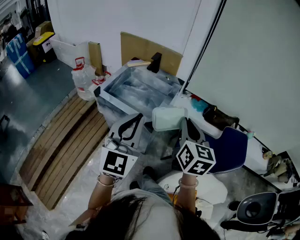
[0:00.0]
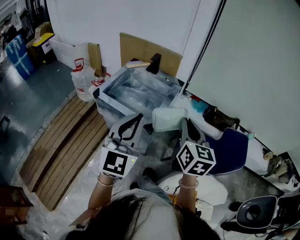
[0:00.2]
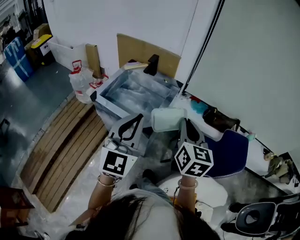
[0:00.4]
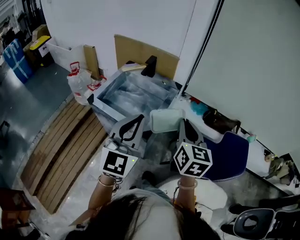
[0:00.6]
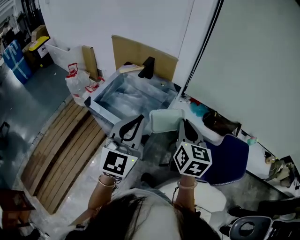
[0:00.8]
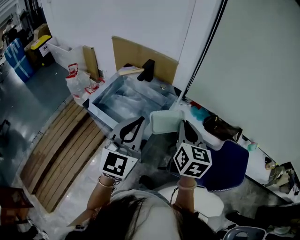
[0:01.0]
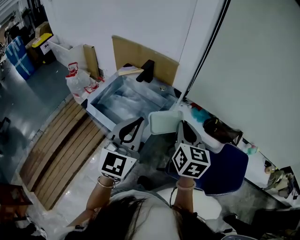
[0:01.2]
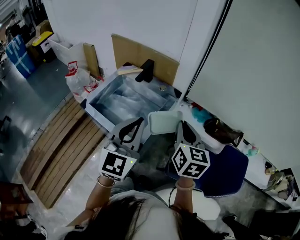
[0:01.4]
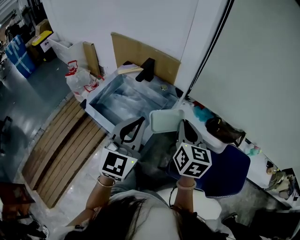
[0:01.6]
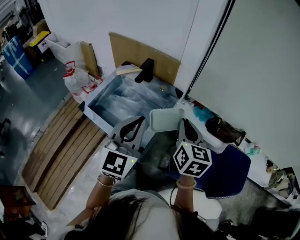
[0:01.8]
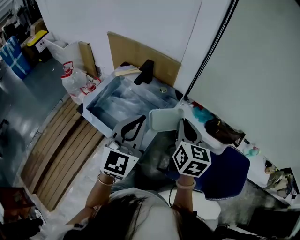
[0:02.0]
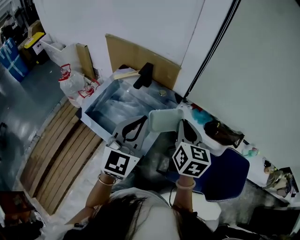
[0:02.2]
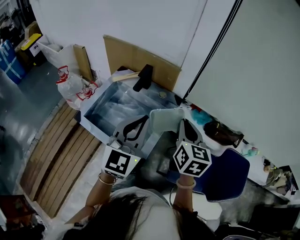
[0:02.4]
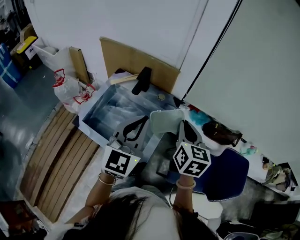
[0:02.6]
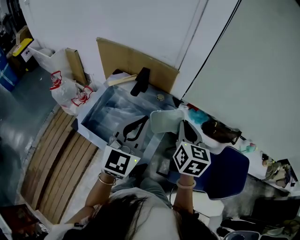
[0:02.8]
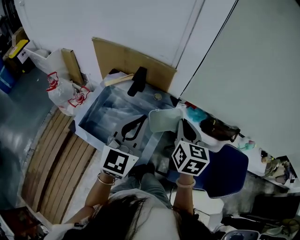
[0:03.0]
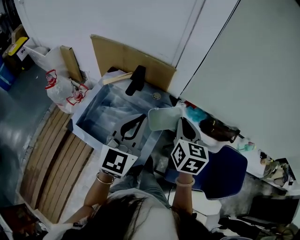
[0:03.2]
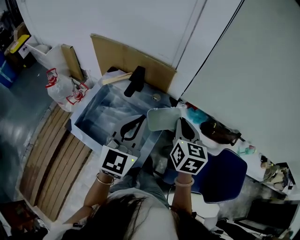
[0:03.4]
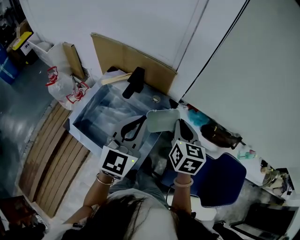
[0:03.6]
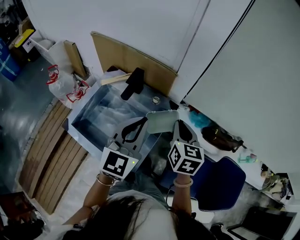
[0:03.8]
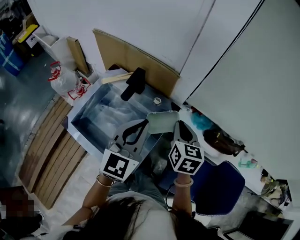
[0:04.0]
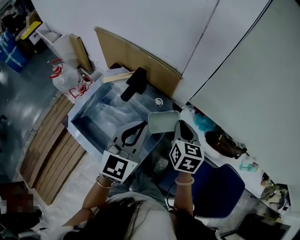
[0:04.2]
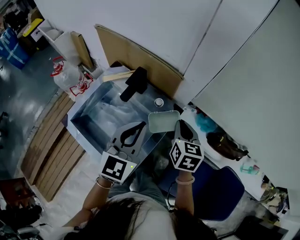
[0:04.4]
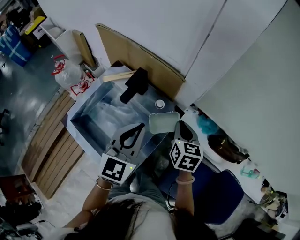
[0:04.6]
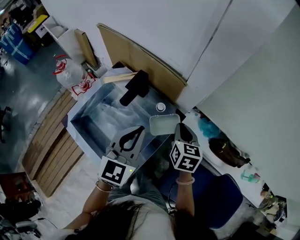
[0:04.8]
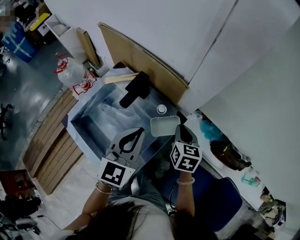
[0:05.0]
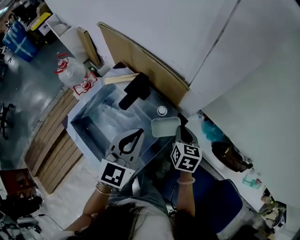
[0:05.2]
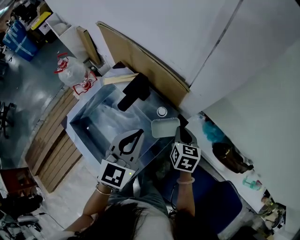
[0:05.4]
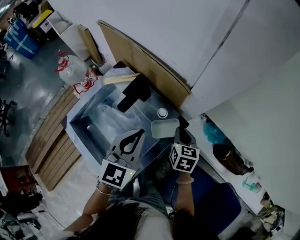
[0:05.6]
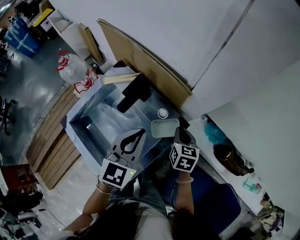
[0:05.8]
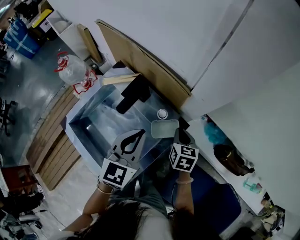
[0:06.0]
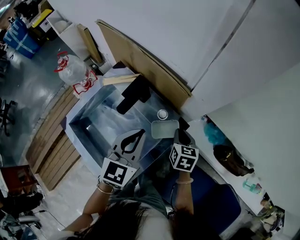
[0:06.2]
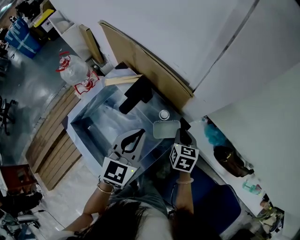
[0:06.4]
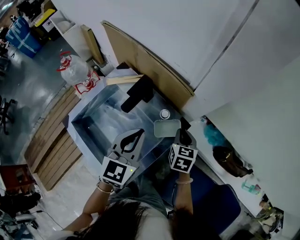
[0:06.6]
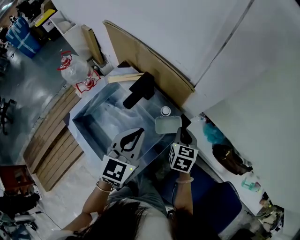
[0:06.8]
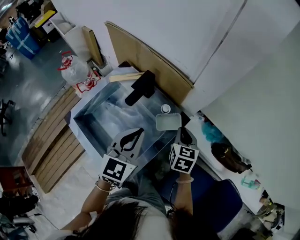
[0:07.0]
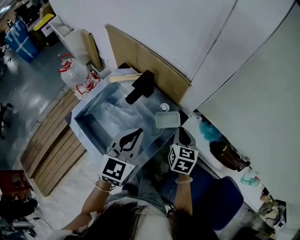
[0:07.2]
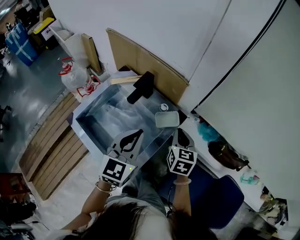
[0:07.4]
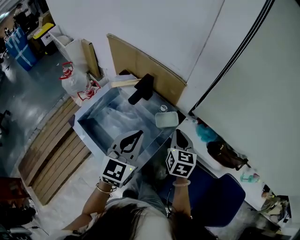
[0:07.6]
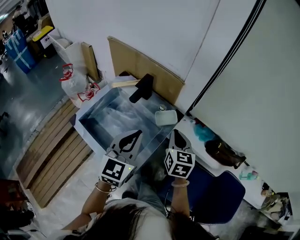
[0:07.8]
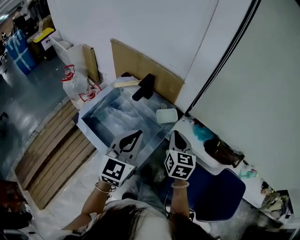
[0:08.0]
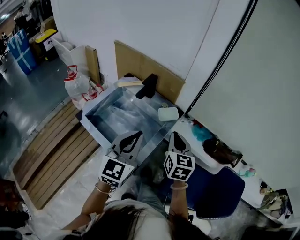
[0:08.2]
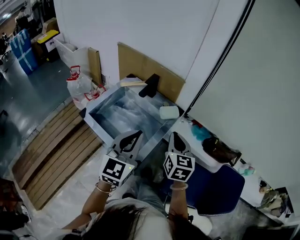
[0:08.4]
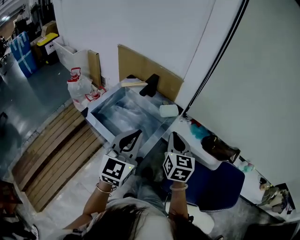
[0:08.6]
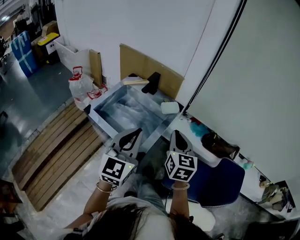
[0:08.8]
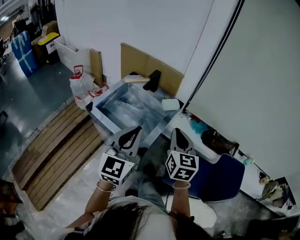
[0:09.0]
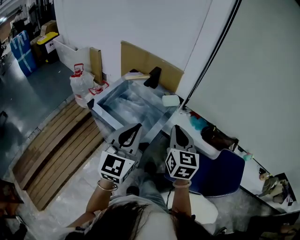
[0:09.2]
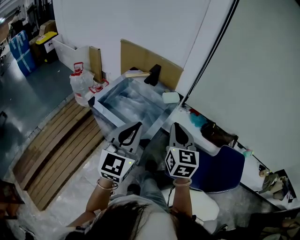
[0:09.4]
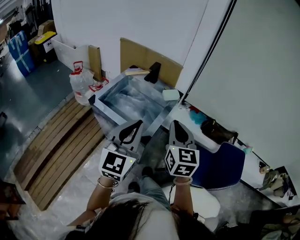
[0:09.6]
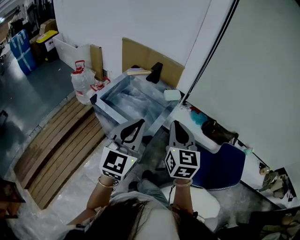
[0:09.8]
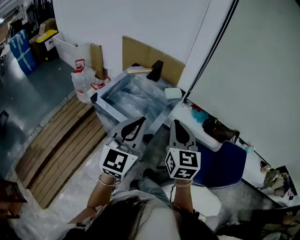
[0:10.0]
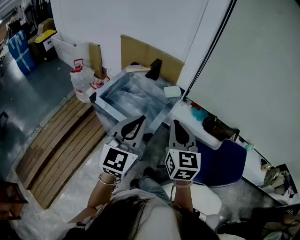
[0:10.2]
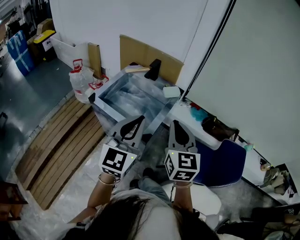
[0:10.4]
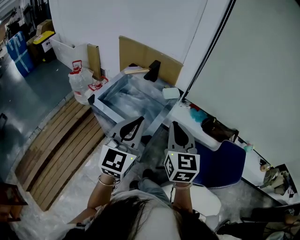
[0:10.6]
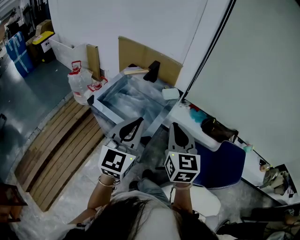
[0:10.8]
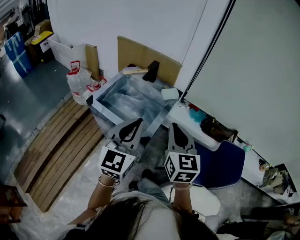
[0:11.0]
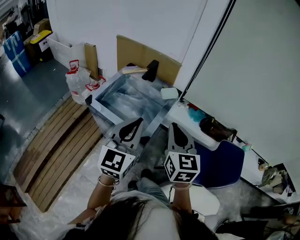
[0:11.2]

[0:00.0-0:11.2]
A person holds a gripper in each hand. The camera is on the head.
0:00.0 to 0:01.6: Both grippers travel together forward, about 20 cm.
0:01.6 to 0:03.2: Both grippers move forward, approximately 10 cm.
0:03.2 to 0:04.8: The right gripper heads forward and downward, covering roughly 20 cm. Meanwhile the left gripper shifts roughly 15 cm forward and downward.
0:04.8 to 0:06.4: The right gripper is displaced downward by approximately 10 cm, while the left gripper shifts by about 5 cm.
0:06.4 to 0:08.0: Both grippers move backward and upward, roughly 20 cm.
0:08.0 to 0:09.6: The right gripper moves backward and upward, some 25 cm; the left gripper moves backward, some 20 cm.
0:09.6 to 0:11.2: The grippers make only small movements.

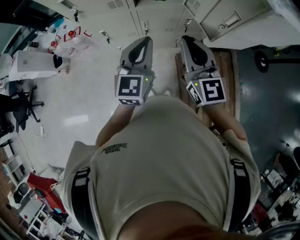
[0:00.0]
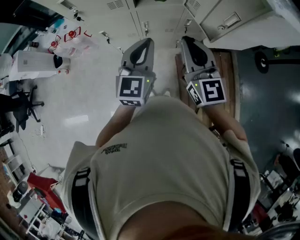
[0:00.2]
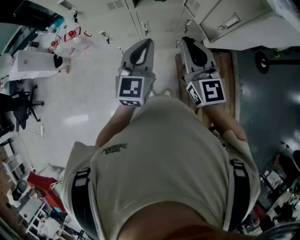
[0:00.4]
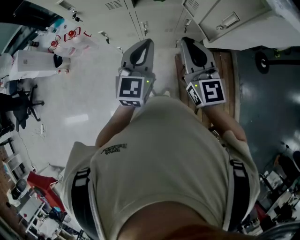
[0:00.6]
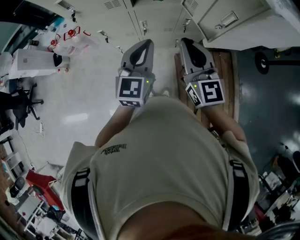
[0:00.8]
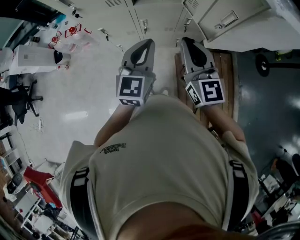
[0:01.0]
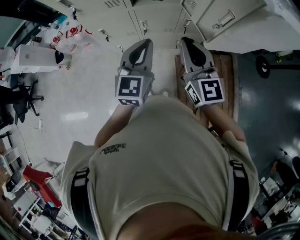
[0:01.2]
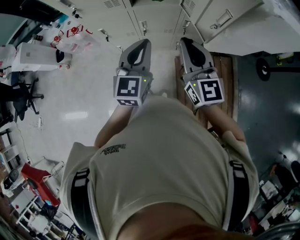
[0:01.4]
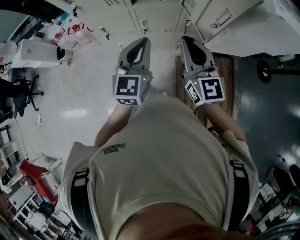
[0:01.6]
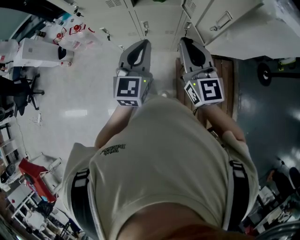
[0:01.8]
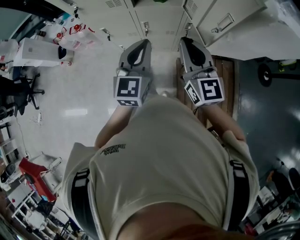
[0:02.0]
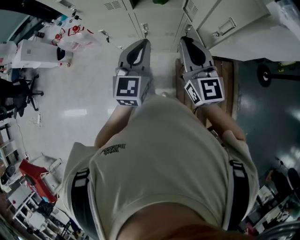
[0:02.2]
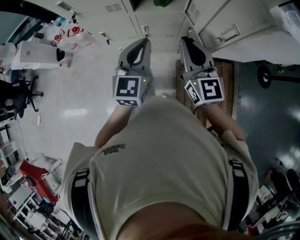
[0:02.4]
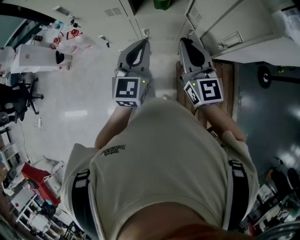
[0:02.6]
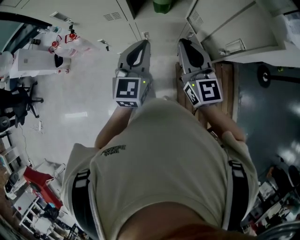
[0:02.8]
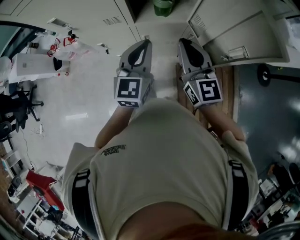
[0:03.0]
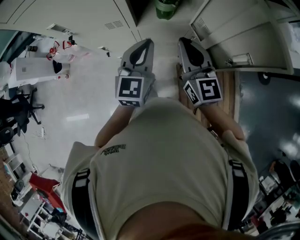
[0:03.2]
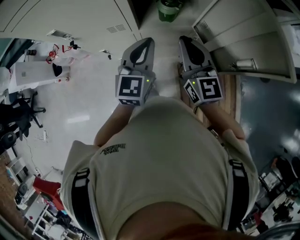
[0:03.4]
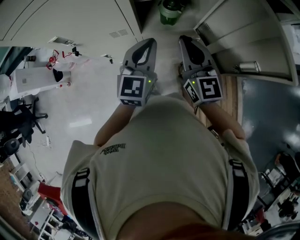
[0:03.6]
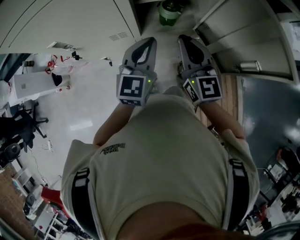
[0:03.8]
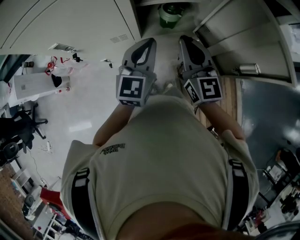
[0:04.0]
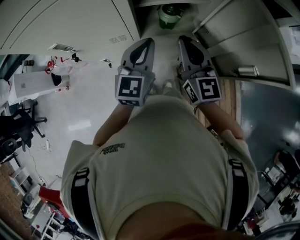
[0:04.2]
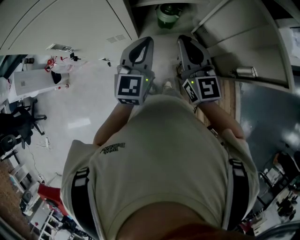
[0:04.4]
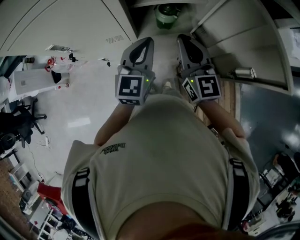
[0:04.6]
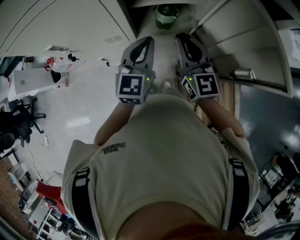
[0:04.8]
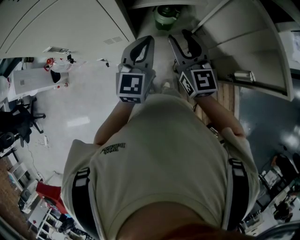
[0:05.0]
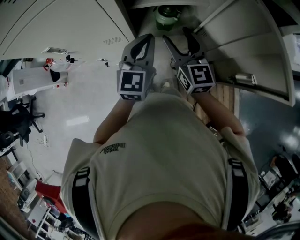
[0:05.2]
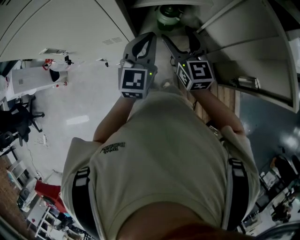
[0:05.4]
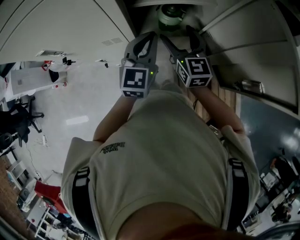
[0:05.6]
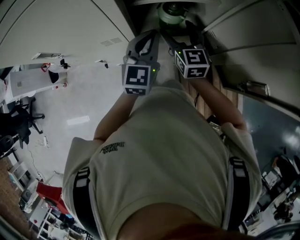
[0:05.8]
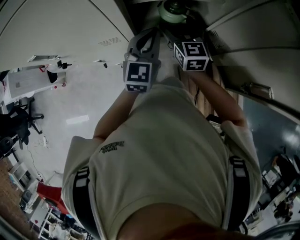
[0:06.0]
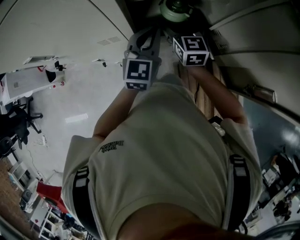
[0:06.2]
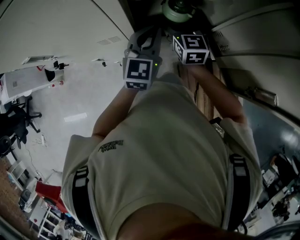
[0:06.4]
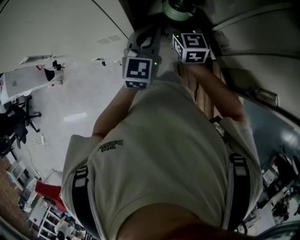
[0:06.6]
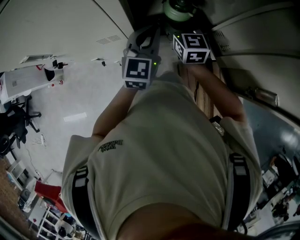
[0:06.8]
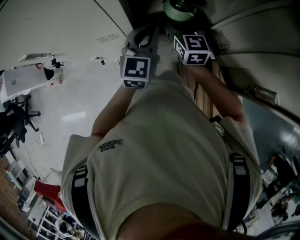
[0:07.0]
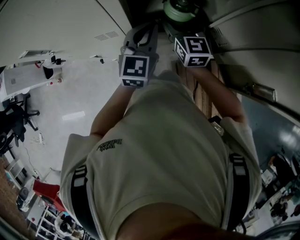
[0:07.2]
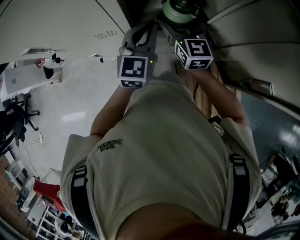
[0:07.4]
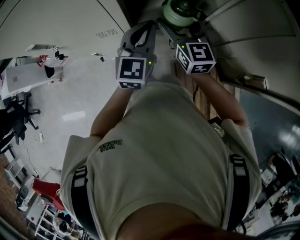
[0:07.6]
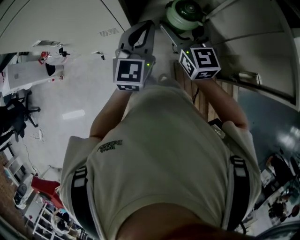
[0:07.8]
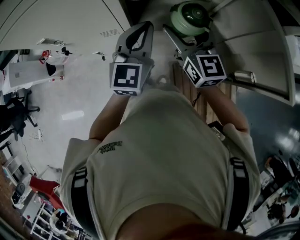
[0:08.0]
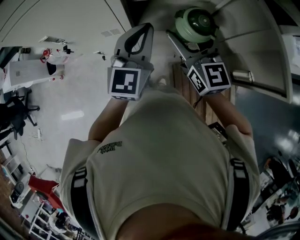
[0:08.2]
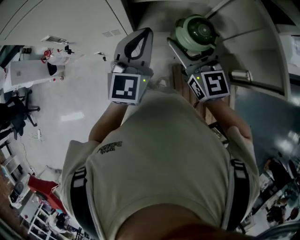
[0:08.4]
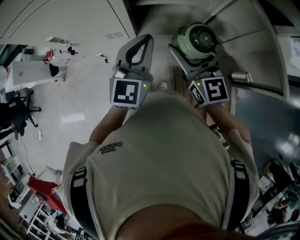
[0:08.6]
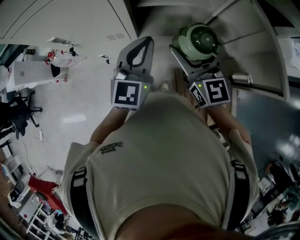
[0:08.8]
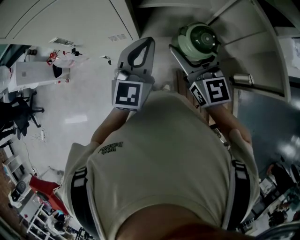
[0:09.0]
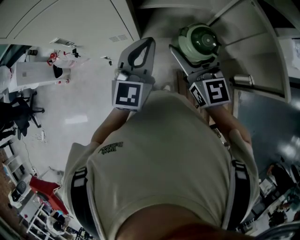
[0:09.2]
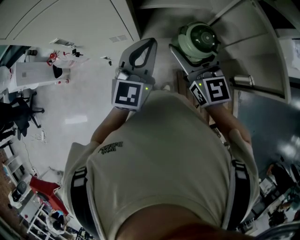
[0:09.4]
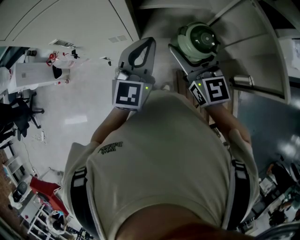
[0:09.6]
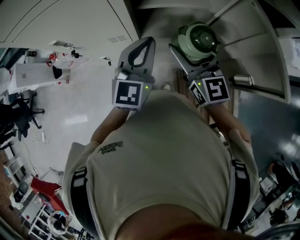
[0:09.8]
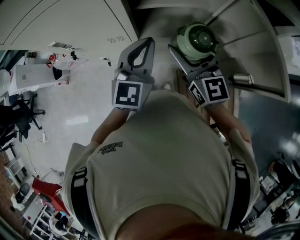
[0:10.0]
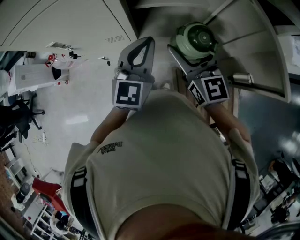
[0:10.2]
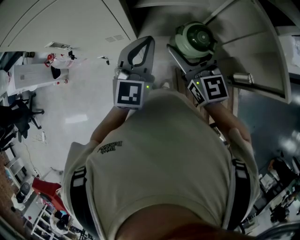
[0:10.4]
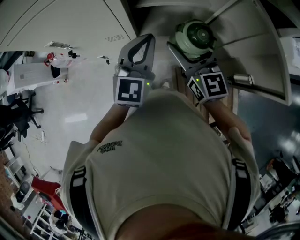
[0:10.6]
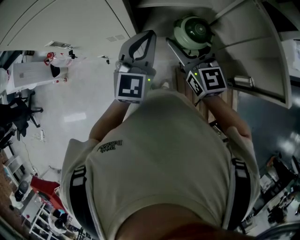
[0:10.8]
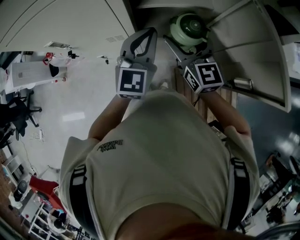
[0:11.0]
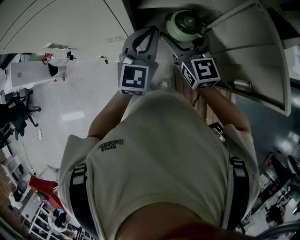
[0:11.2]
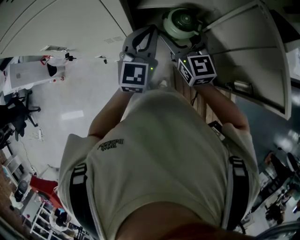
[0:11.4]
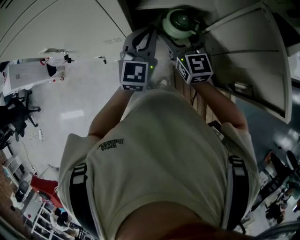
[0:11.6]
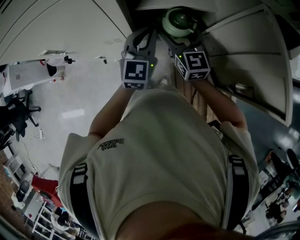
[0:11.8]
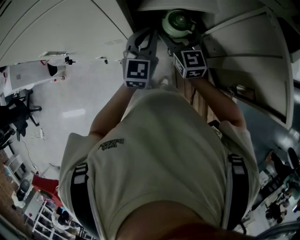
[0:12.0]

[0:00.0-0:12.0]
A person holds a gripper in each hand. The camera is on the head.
0:00.0 to 0:01.6: The right gripper is displaced to the right by roughly 5 cm.
0:01.6 to 0:03.0: Both grippers travel together forward, approximately 15 cm.
0:03.0 to 0:04.4: Both grippers travel together forward, some 10 cm.
0:04.4 to 0:06.0: The left gripper is displaced downward and forward by some 10 cm; the right gripper goes roughly 20 cm downward and forward, and opens up.
0:06.0 to 0:07.6: The right gripper moves upward, approximately 10 cm. The left gripper moves about 5 cm.
0:07.6 to 0:09.0: The grippers both shift upward and backward by some 10 cm.
0:09.0 to 0:10.4: The grippers move only a little.
0:10.4 to 0:12.0: The grippers both shift forward and downward by about 15 cm.

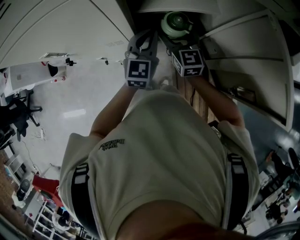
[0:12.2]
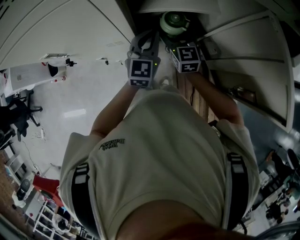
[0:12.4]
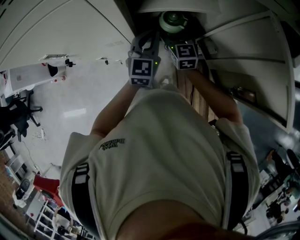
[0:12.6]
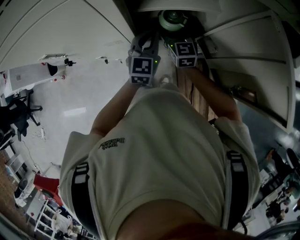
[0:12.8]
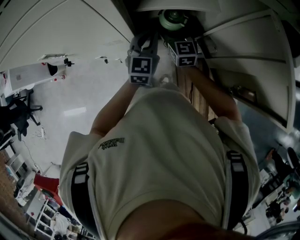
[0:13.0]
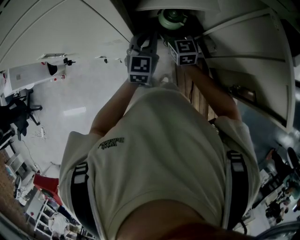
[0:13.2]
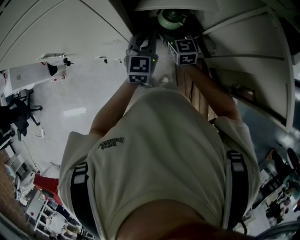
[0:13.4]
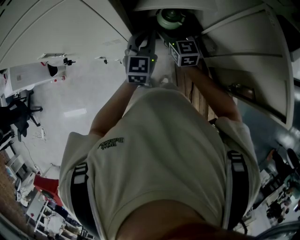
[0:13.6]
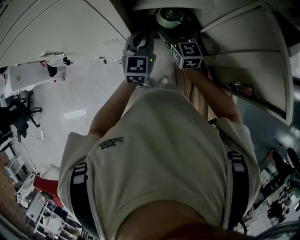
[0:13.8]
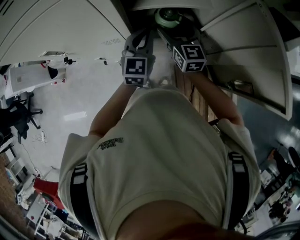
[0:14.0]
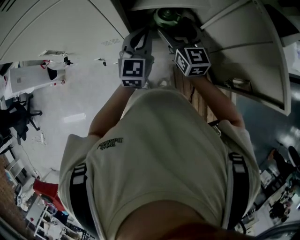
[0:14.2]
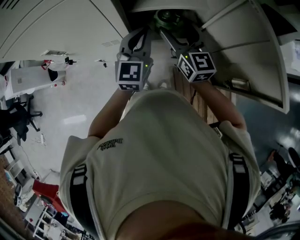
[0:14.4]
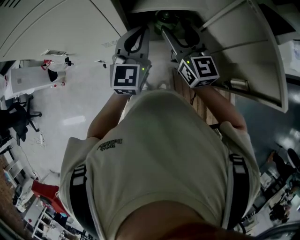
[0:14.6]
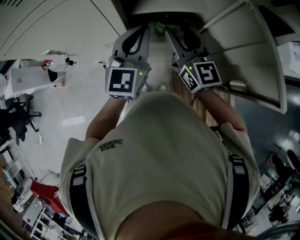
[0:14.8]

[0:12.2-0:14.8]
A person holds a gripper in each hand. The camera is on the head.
0:12.2 to 0:13.4: The right gripper moves approximately 5 cm.
0:13.4 to 0:14.8: The left gripper goes roughly 15 cm upward. Meanwhile the right gripper is displaced upward and backward by about 20 cm, and closes.
